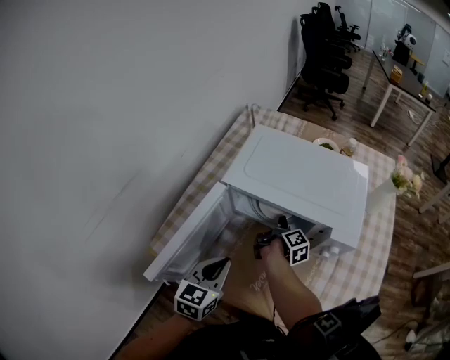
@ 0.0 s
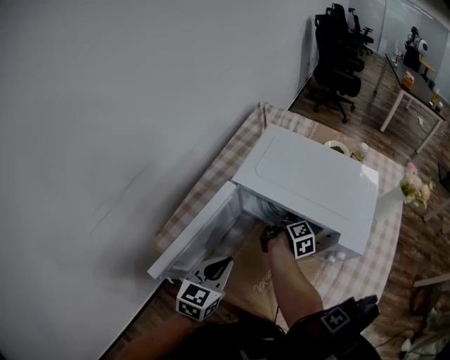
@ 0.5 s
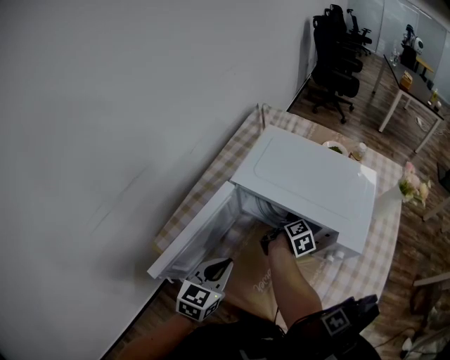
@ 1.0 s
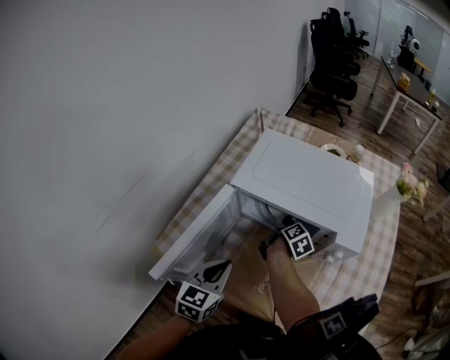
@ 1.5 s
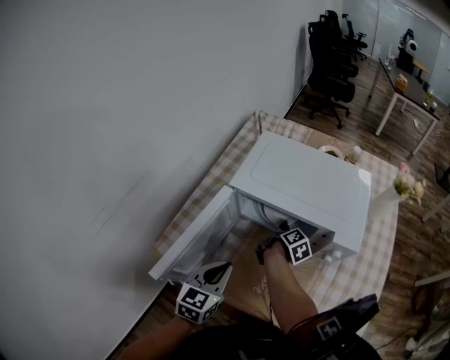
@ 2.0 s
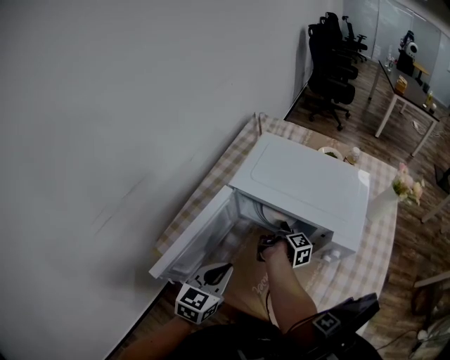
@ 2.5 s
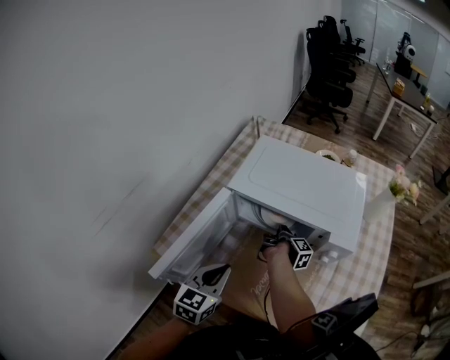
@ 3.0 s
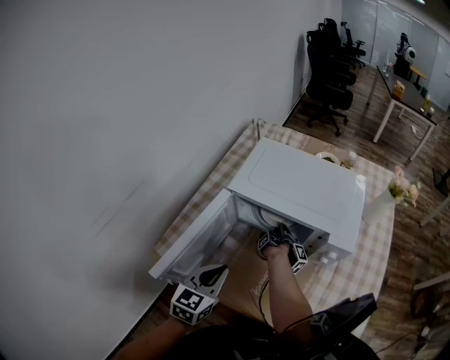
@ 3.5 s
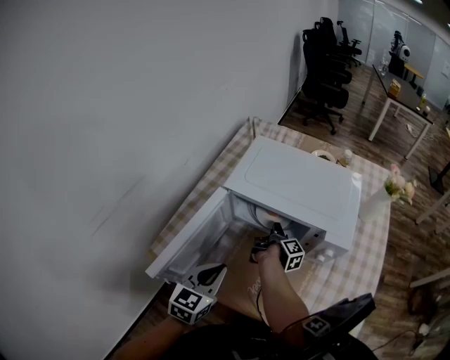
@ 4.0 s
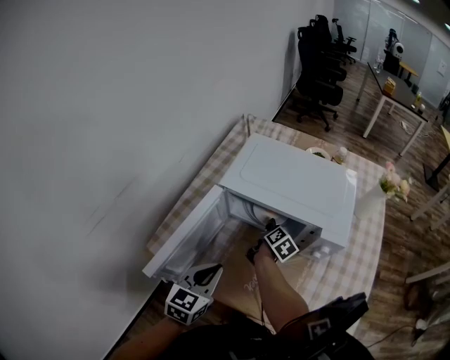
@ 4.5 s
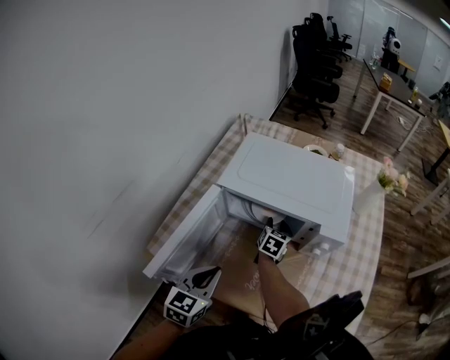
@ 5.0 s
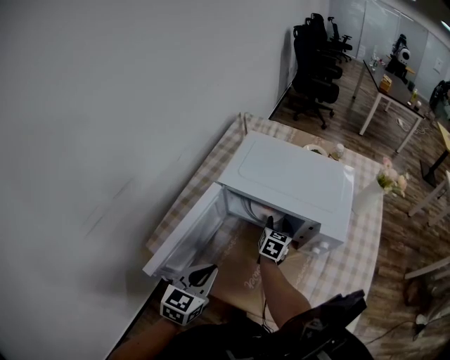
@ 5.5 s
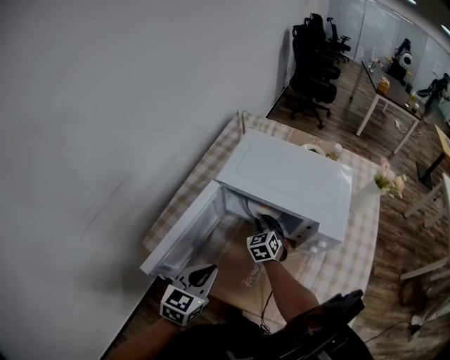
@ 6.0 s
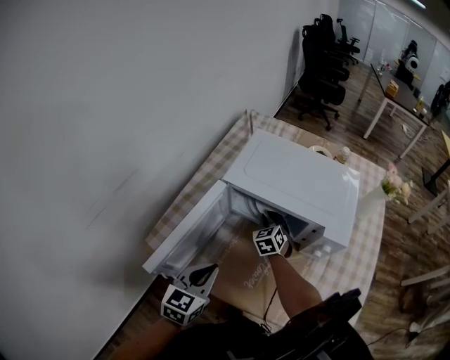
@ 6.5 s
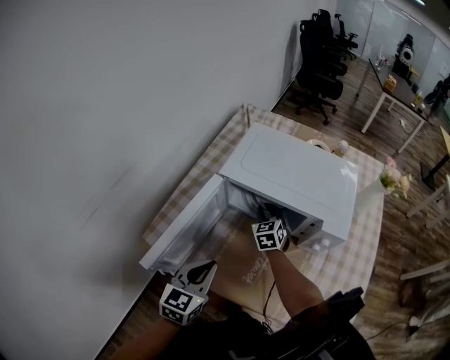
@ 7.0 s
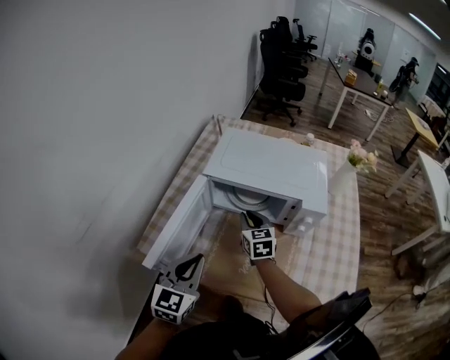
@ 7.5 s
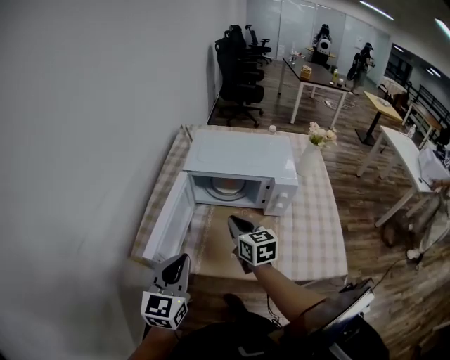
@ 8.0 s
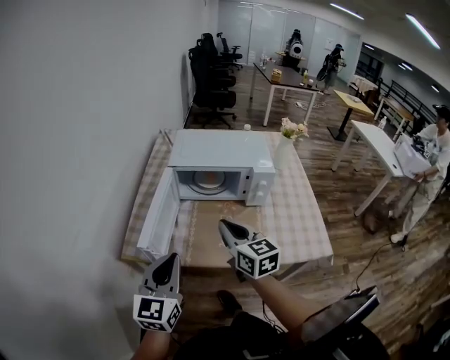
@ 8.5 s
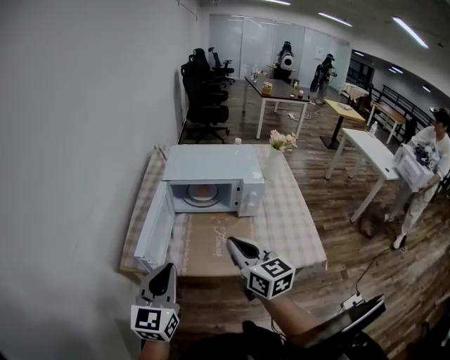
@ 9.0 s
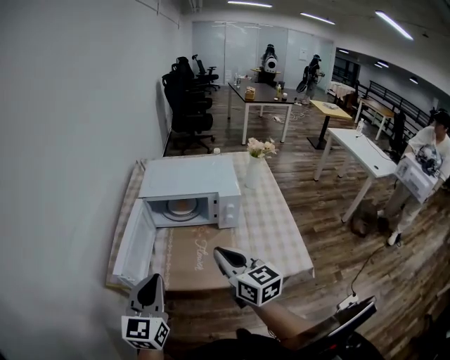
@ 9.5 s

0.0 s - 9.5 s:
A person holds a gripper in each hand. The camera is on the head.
2.0 s - 4.0 s: The right gripper changes its angle by some 30 degrees.
4.0 s - 5.5 s: The right gripper rotates around the line of its fingers by approximately 90 degrees, counterclockwise from behind, and opens its fingers.
5.5 s - 7.5 s: The right gripper shifts about 15 cm backward, upward and to the left, rotates roughly 20 degrees, and closes up; the left gripper shifts approximately 5 cm upward.
7.5 s - 9.5 s: The right gripper travels backward and upward by some 35 cm, and changes its angle by roughly 20 degrees. Meanwhile the left gripper moves backward and upward, some 15 cm.

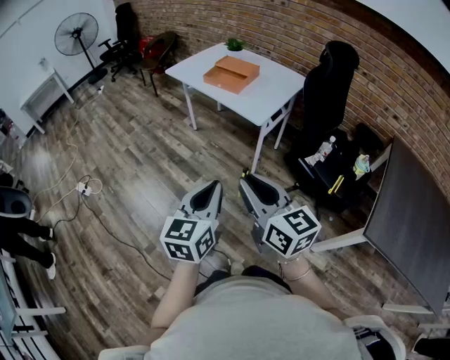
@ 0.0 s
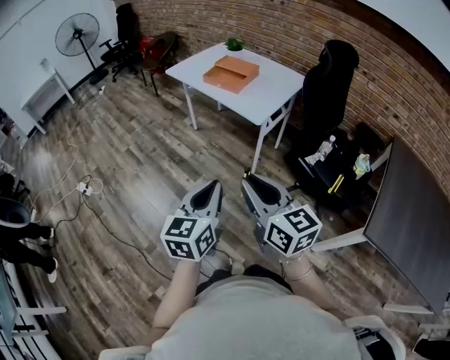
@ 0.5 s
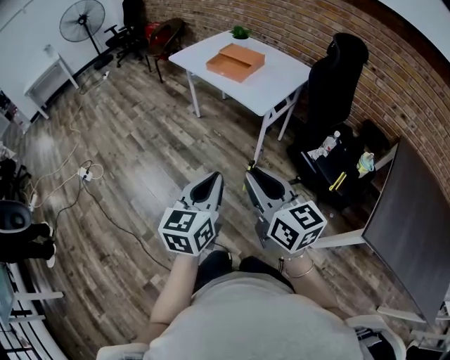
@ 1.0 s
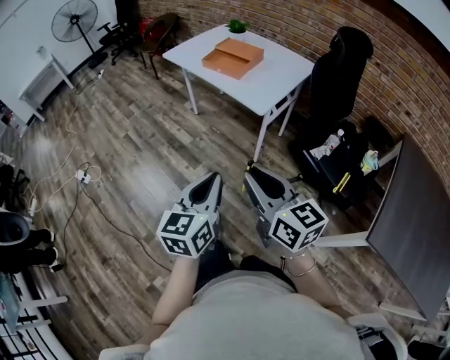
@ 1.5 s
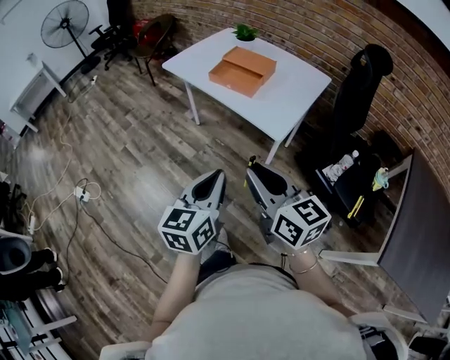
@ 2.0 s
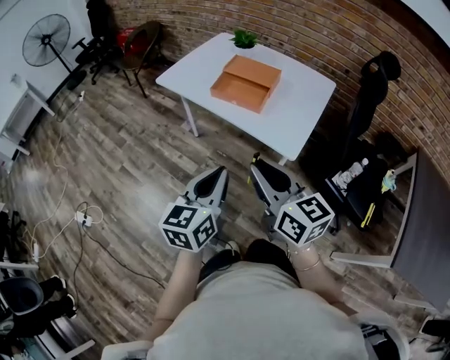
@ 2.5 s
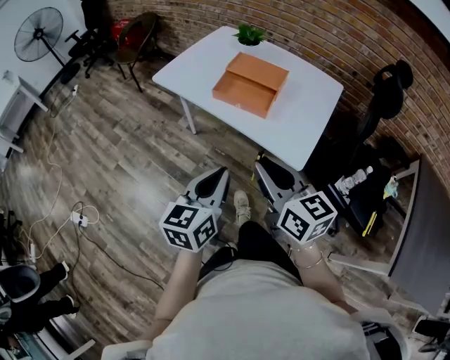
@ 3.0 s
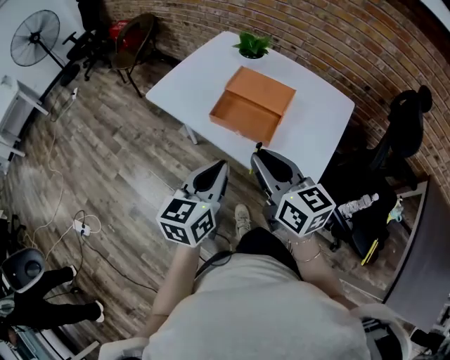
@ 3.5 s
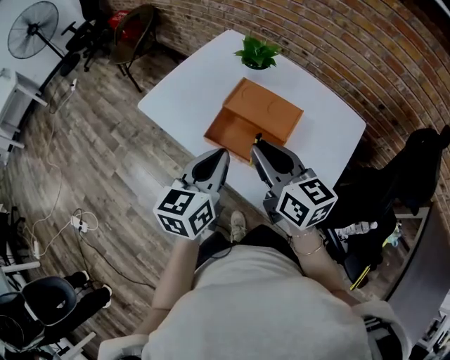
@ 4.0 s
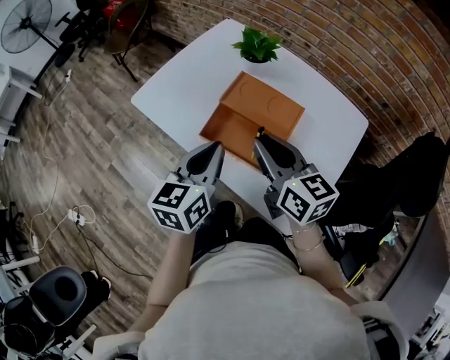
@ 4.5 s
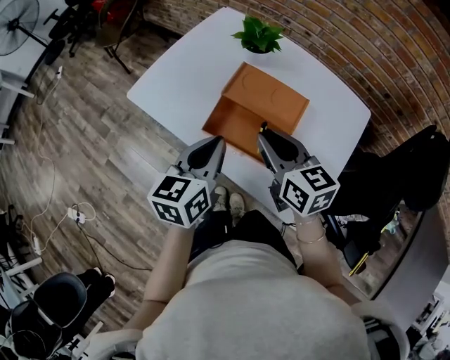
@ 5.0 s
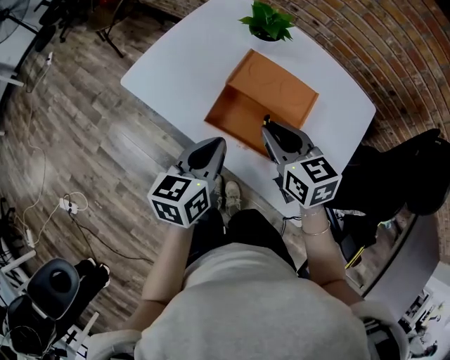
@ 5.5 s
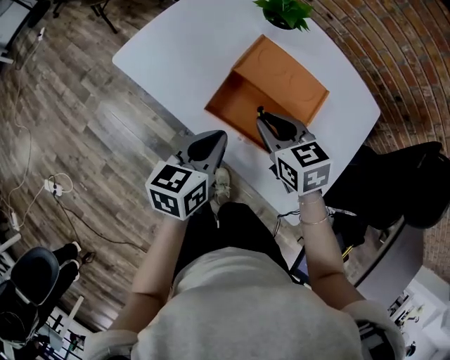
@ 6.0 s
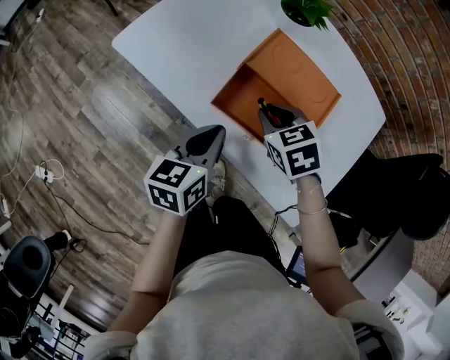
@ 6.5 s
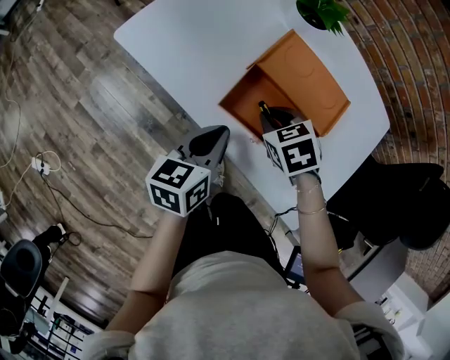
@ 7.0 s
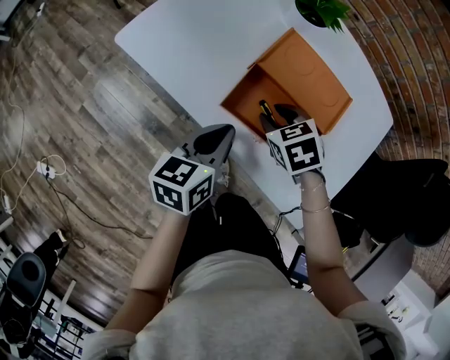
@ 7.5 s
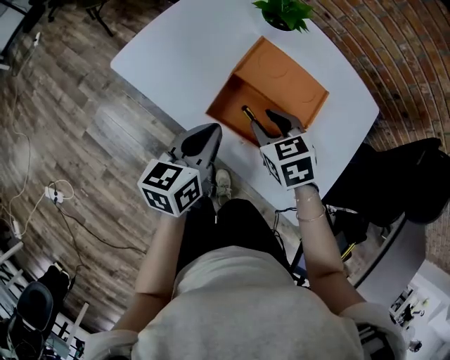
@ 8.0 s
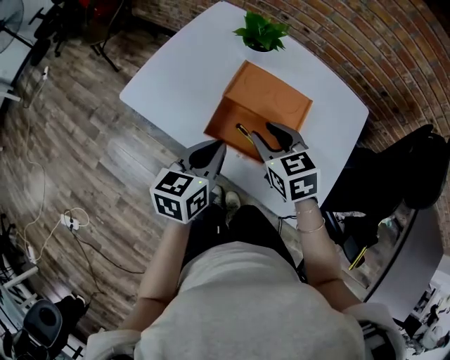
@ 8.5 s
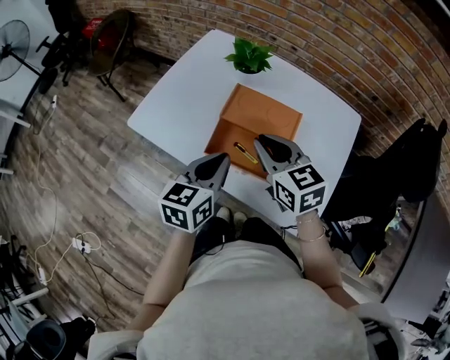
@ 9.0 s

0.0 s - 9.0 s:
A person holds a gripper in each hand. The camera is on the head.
0.0 s - 2.0 s: Both grippers travel together forward, some 20 cm.
2.0 s - 4.5 s: Both grippers are carried forward, some 50 cm.
4.5 s - 7.0 s: Both grippers move downward, about 20 cm. The right gripper tips its fingers downward by roughly 50 degrees.
7.0 s - 9.0 s: The left gripper moves upward, some 15 cm; the right gripper travels upward by approximately 20 cm, tips its fingers upward by approximately 40 degrees, and opens, then closes again.

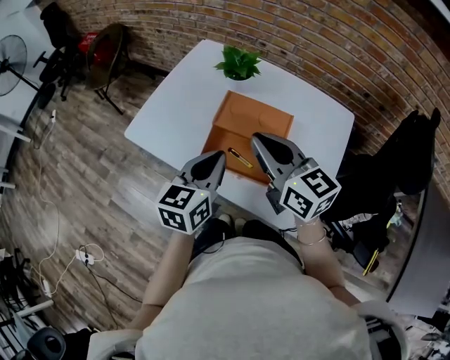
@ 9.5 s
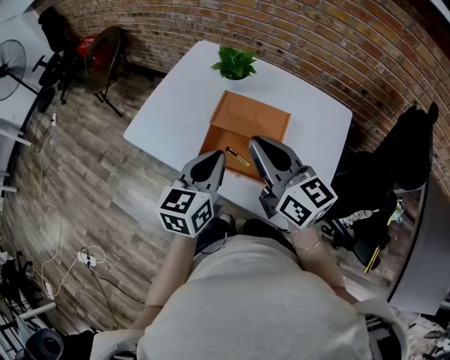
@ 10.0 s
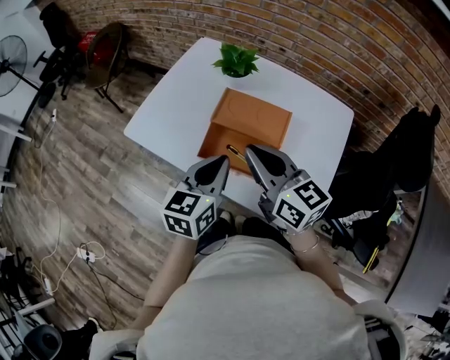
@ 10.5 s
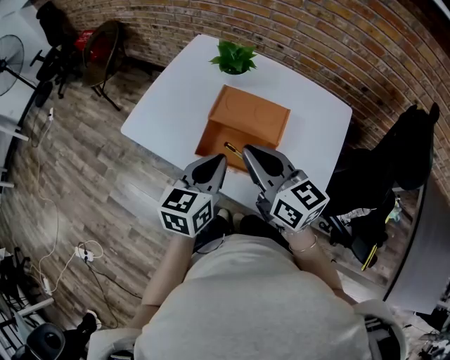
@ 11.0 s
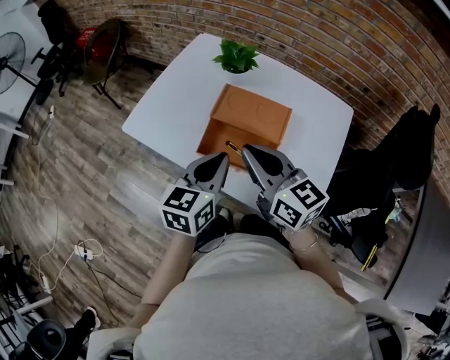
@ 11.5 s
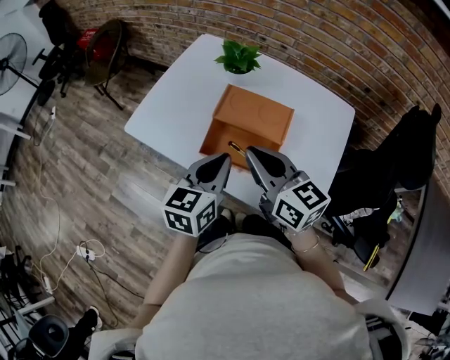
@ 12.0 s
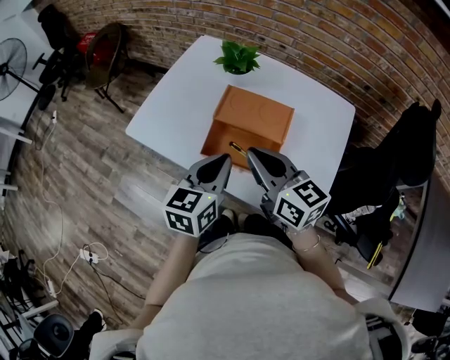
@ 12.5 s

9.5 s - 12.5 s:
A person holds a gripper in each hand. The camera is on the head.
9.5 s - 12.5 s: The grippers make only small movements.

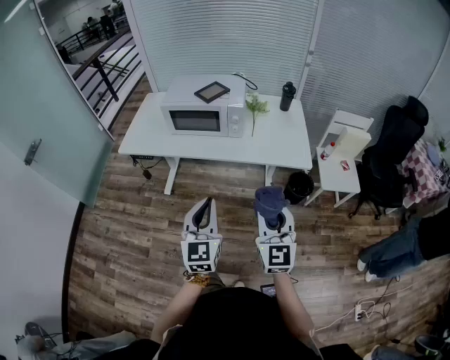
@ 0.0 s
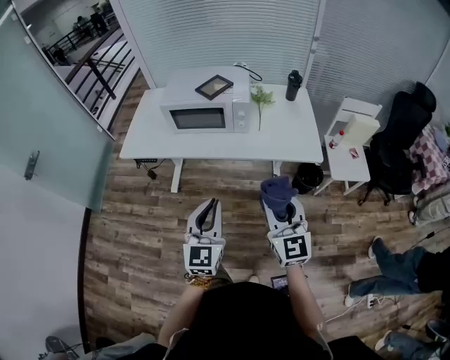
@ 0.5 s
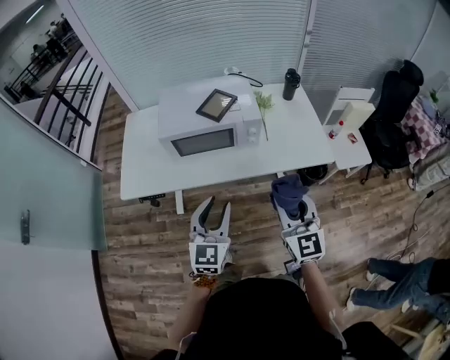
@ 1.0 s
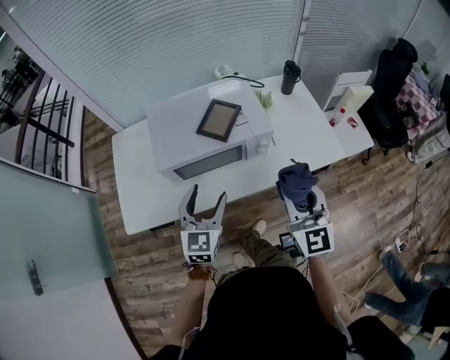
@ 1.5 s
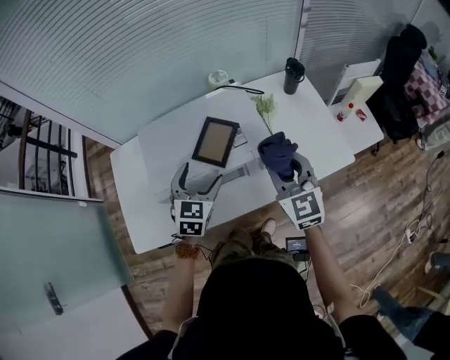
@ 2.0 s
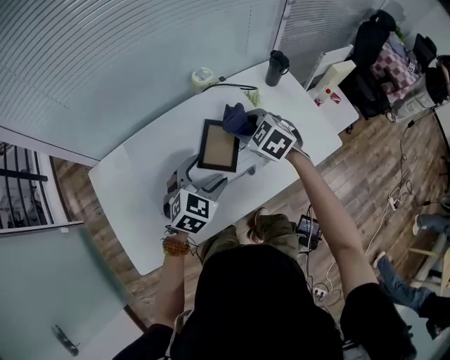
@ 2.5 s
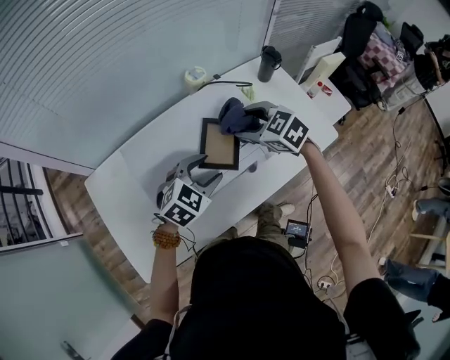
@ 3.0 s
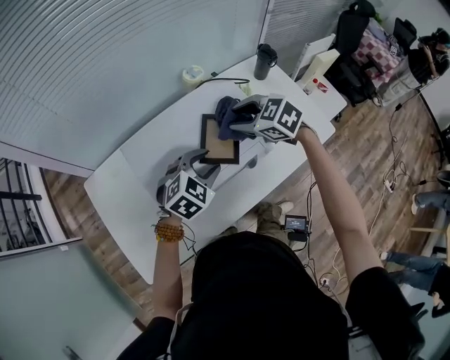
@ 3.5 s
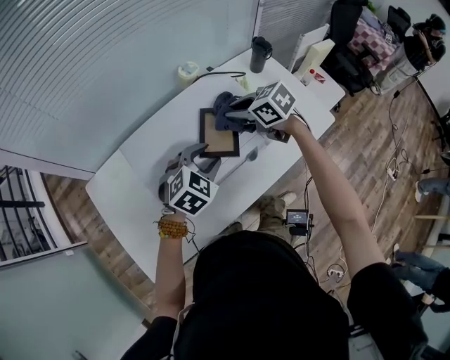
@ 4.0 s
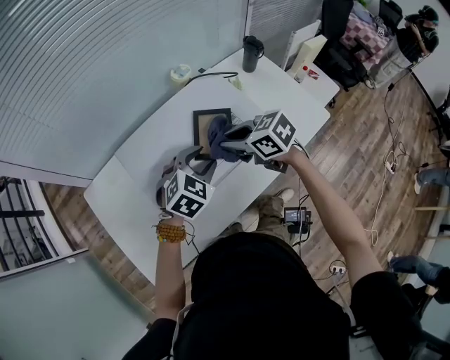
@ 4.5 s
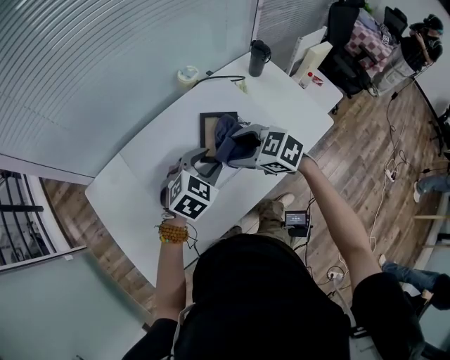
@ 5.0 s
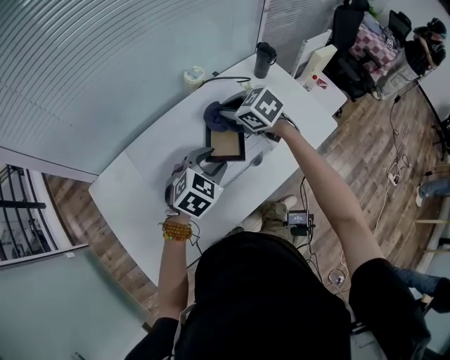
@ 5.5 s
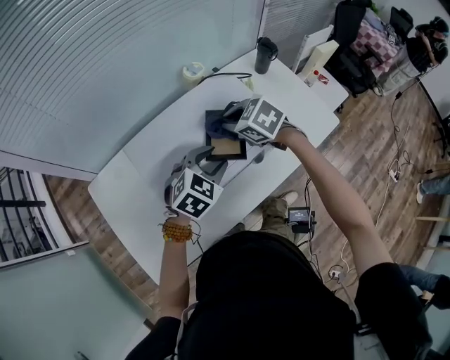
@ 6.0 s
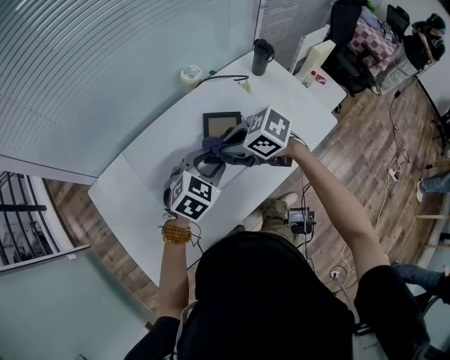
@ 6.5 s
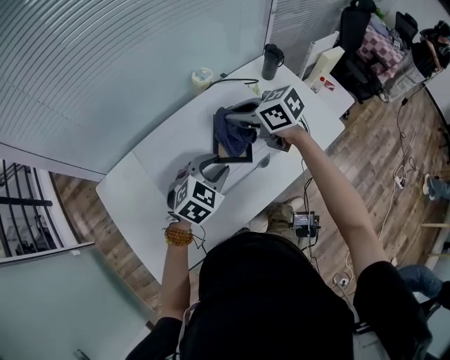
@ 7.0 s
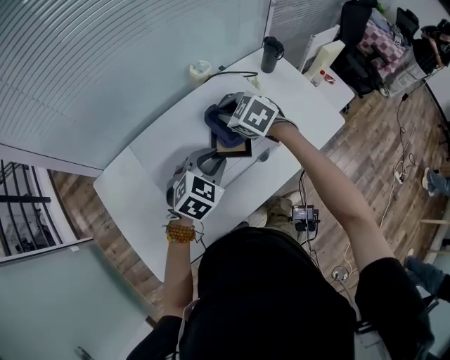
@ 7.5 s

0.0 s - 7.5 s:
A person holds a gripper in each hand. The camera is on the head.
0.0 s - 2.0 s: The two grippers travel together, forward, approximately 50 cm. The left gripper swivels approximately 40 degrees, and opens.
2.0 s - 4.0 s: The left gripper changes its angle by about 40 degrees, and closes up. The right gripper is displaced forward, to the left and downward by roughly 20 cm, swivels about 40 degrees, and opens, then closes again.
4.0 s - 5.5 s: The right gripper reaches some 10 cm backward, then returns, and opens and closes again.
5.5 s - 7.5 s: The right gripper moves some 10 cm backward and comes back.
